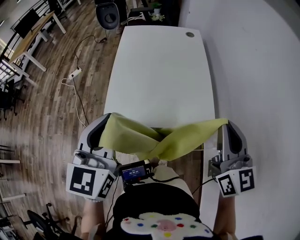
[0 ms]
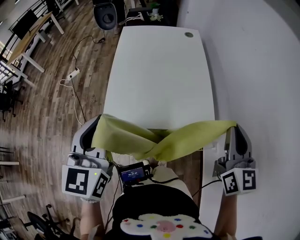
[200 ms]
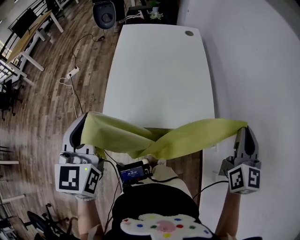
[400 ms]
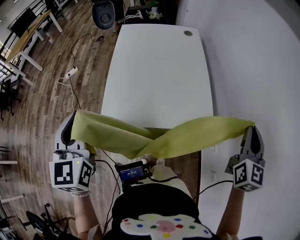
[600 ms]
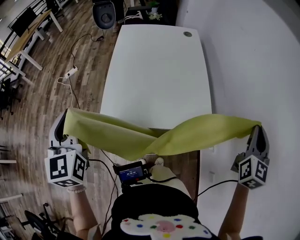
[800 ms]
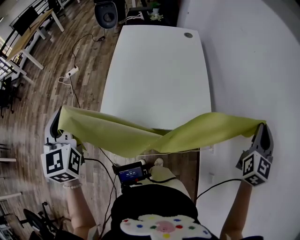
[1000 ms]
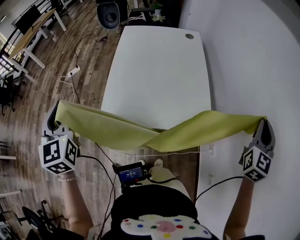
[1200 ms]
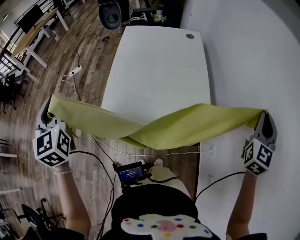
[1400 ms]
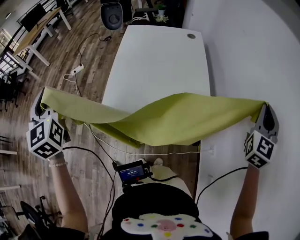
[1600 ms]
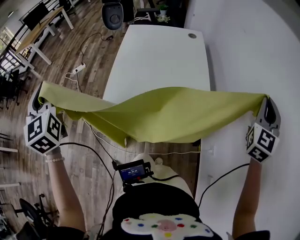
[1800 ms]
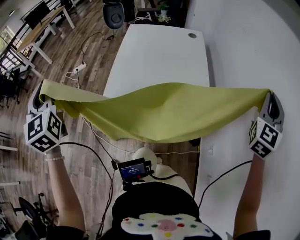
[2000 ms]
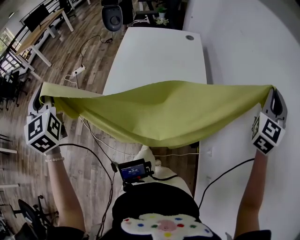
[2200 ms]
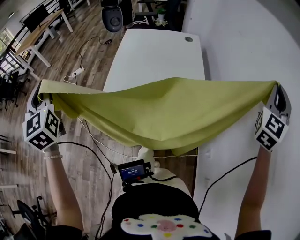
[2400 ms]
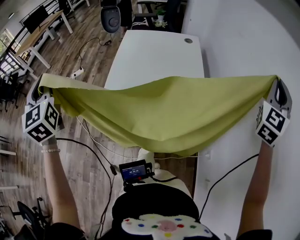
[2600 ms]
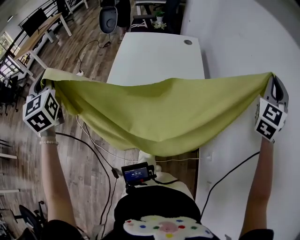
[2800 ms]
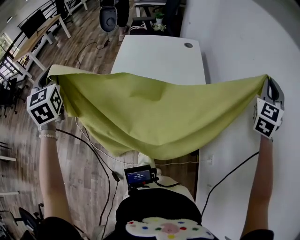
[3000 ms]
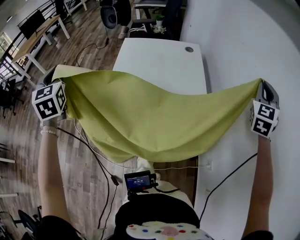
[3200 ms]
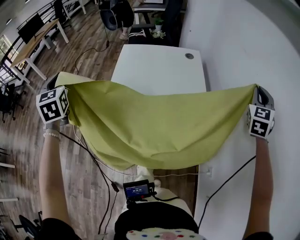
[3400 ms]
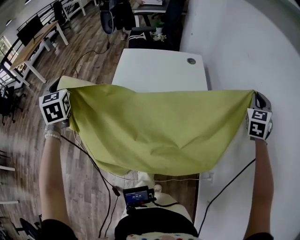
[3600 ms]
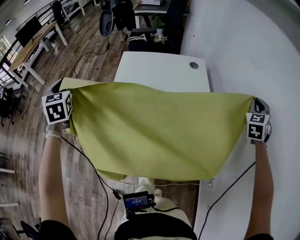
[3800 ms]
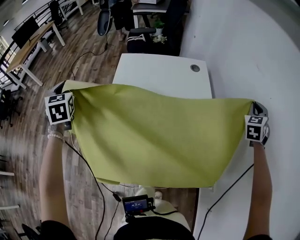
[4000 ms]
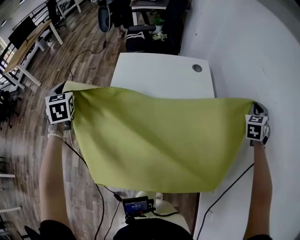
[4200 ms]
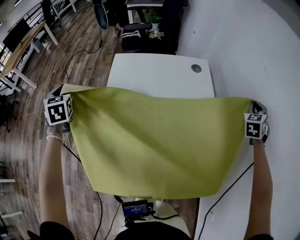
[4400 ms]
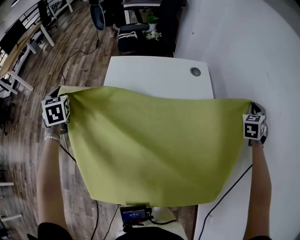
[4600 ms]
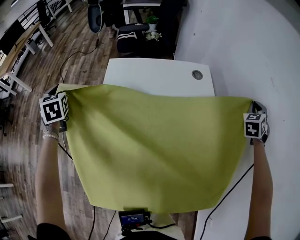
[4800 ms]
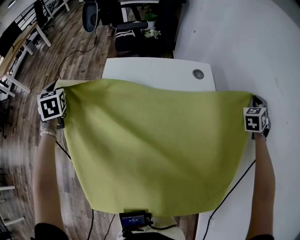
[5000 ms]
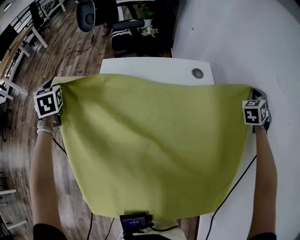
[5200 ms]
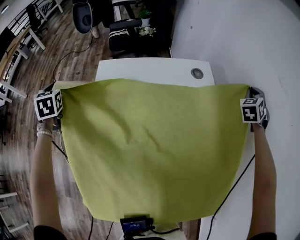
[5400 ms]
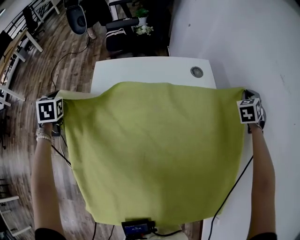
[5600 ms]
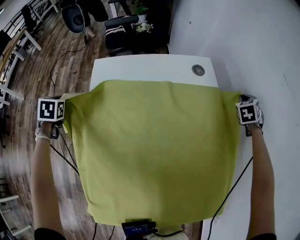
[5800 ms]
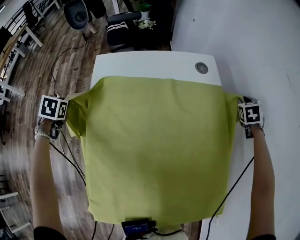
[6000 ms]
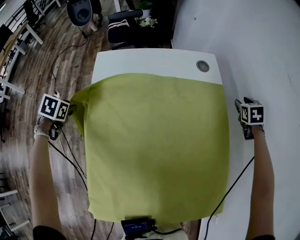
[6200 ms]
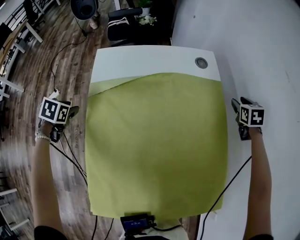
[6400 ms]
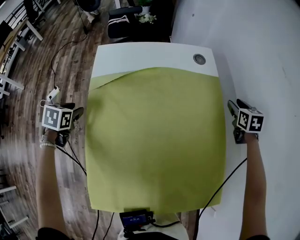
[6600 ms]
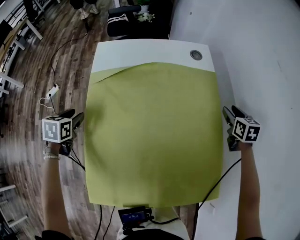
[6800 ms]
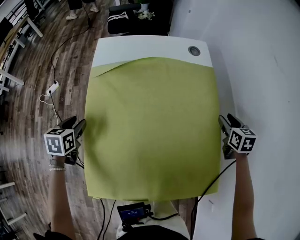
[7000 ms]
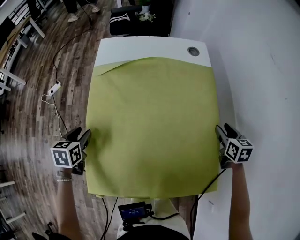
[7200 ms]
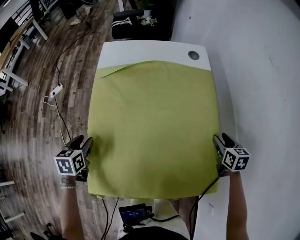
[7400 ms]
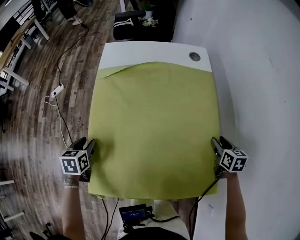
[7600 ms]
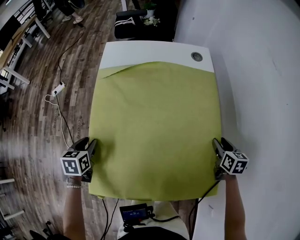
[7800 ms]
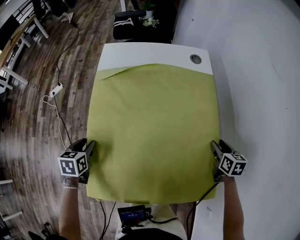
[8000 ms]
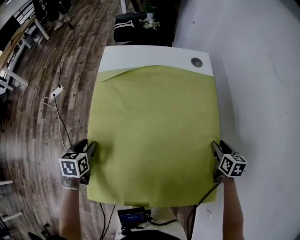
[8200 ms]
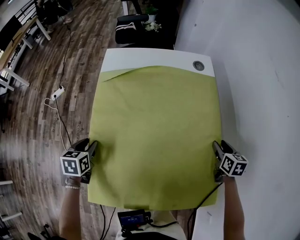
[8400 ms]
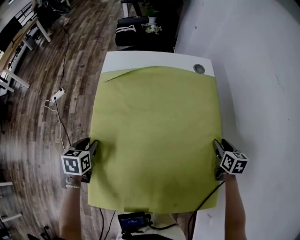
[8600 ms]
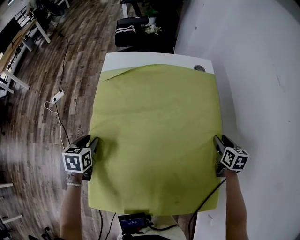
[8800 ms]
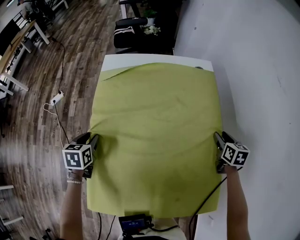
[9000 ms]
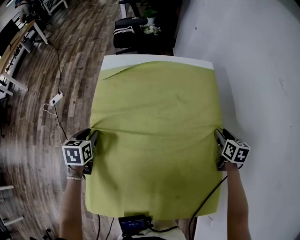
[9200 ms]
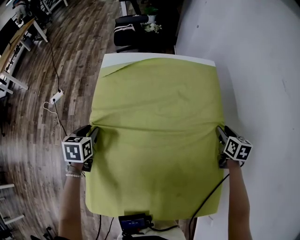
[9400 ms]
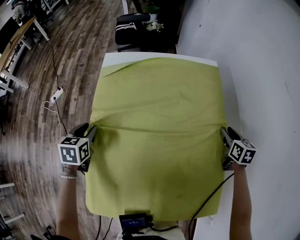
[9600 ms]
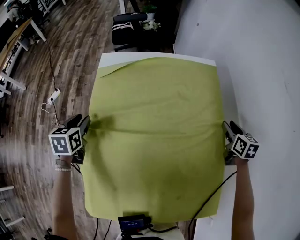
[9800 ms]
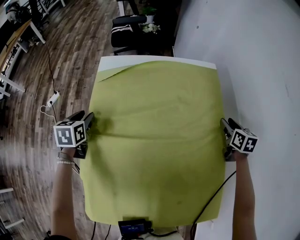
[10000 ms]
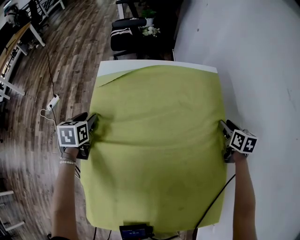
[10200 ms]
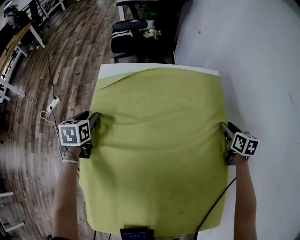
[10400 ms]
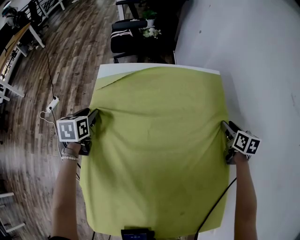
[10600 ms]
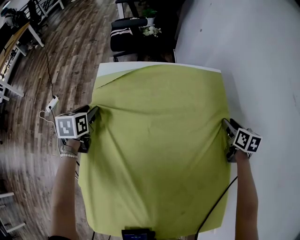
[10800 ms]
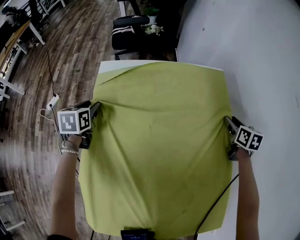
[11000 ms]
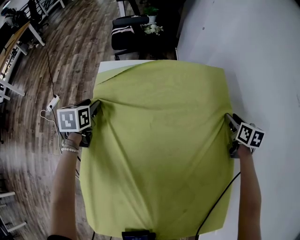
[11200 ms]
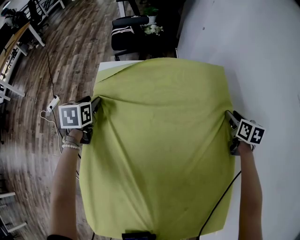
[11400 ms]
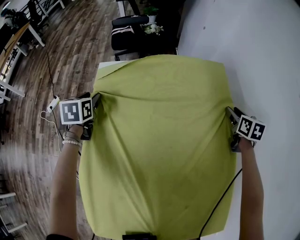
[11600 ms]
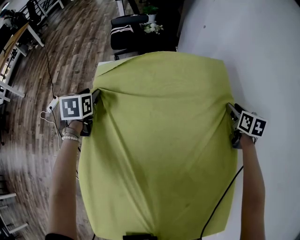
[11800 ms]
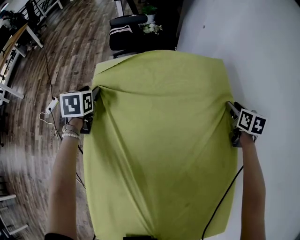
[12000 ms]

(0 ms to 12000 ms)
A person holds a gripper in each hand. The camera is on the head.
0 ms - 1600 ms: The right gripper travels to the right by roughly 20 cm, and swivels some 40 degrees, while the left gripper travels to the left by about 20 cm, and rotates approximately 40 degrees.
1600 ms - 3000 ms: The left gripper shifts about 10 cm forward. Meanwhile the right gripper travels forward and upward by roughly 10 cm.
3000 ms - 4400 ms: Both grippers travel together forward and downward, about 35 cm. The left gripper turns by roughly 20 degrees, while the right gripper swivels some 30 degrees.
4400 ms - 6000 ms: Both grippers move downward and forward, about 20 cm. The right gripper changes its angle by some 20 degrees. Meanwhile the left gripper angles its fingers downward, by approximately 40 degrees.
6000 ms - 7600 ms: The left gripper travels backward and to the right by approximately 30 cm, changes its angle by roughly 30 degrees, and opens up, while the right gripper travels backward by some 30 cm, swivels some 40 degrees, and opens its fingers.
7600 ms - 9000 ms: Both grippers move forward, some 10 cm.
9000 ms - 10400 ms: The two grippers go approximately 15 cm forward.
10400 ms - 12000 ms: Both grippers travel together forward, roughly 10 cm.

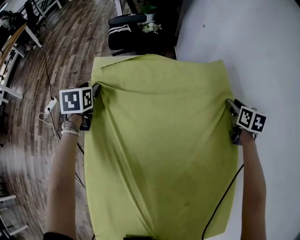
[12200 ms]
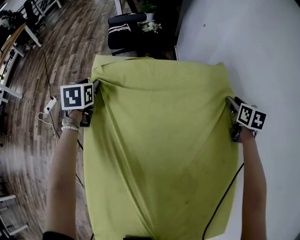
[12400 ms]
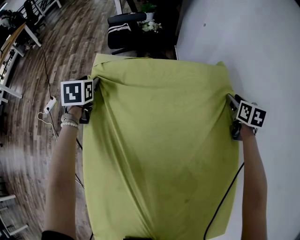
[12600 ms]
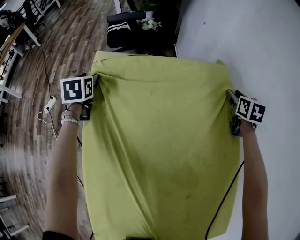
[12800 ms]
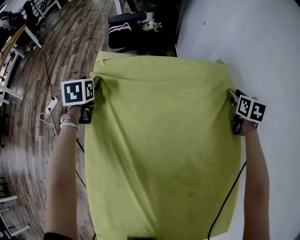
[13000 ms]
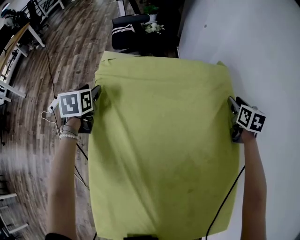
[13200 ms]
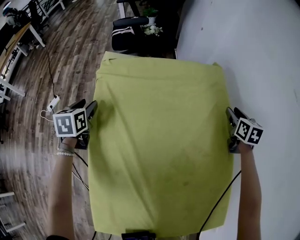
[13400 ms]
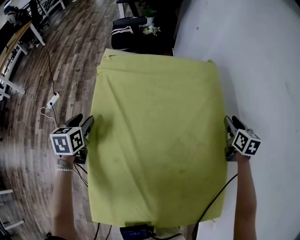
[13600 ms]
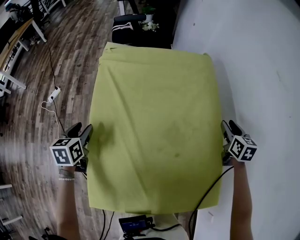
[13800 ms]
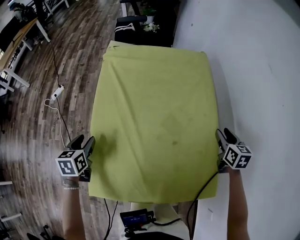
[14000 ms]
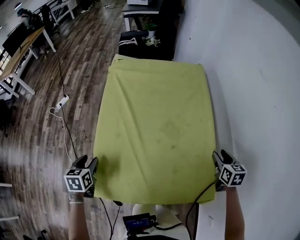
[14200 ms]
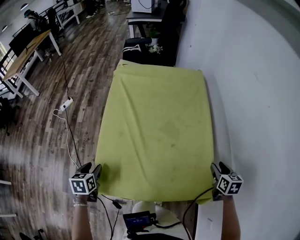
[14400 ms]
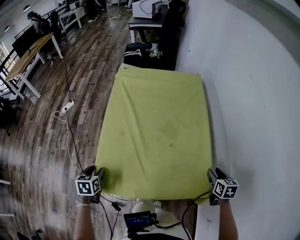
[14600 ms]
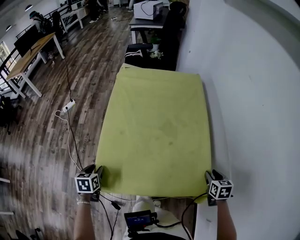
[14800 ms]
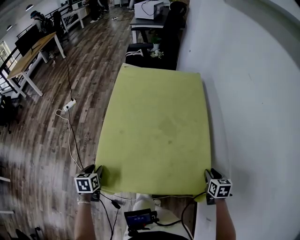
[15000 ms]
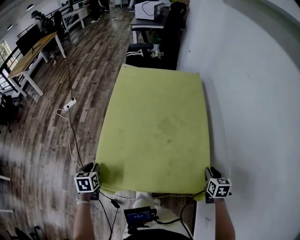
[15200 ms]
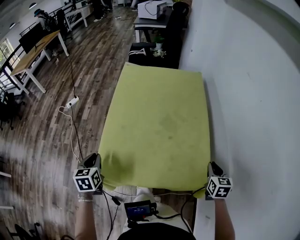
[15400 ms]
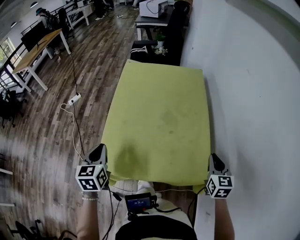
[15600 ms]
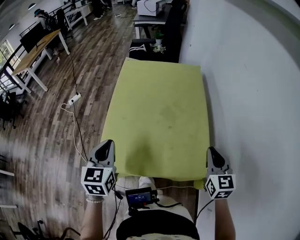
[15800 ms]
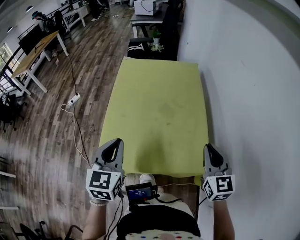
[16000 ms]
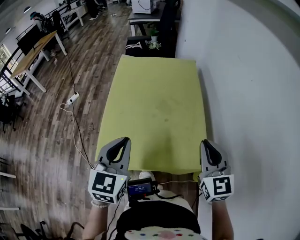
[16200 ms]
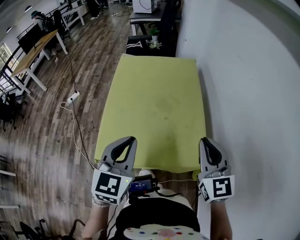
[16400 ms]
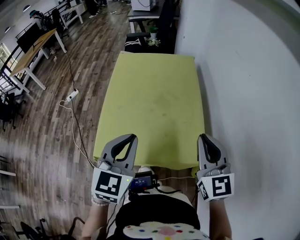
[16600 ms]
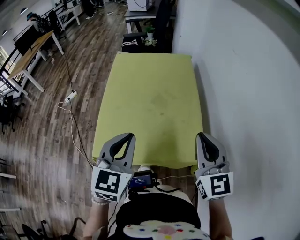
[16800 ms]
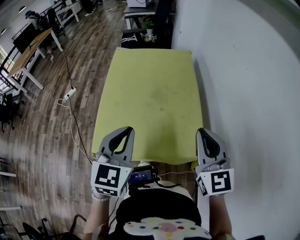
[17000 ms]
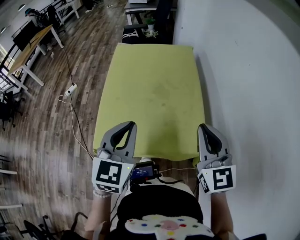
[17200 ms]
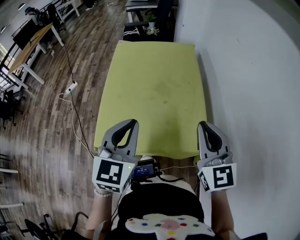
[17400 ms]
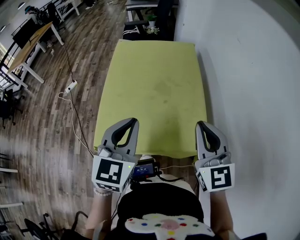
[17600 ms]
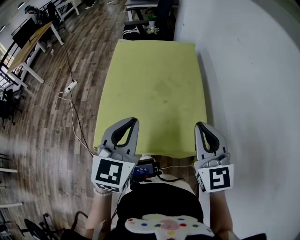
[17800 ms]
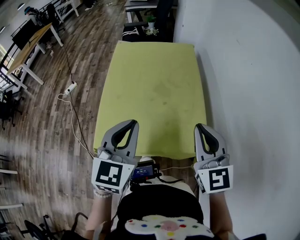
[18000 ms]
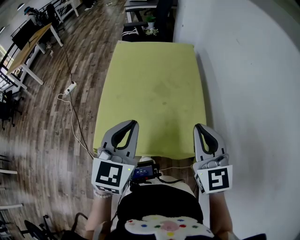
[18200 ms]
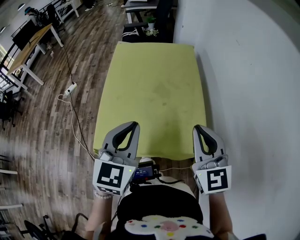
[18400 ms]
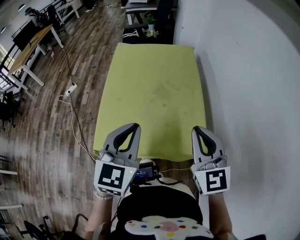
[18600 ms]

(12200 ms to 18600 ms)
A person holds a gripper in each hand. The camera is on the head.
12200 ms - 13800 ms: Both grippers move backward, about 25 cm.
13800 ms - 15400 ms: The grippers both shift backward by some 25 cm. The right gripper closes. Meanwhile the left gripper closes up.
15400 ms - 17000 ms: The right gripper shifts some 25 cm upward and to the left, and tips its fingers upward by about 30 degrees, while the left gripper travels to the right and upward by about 30 cm, and turns by approximately 40 degrees.
17000 ms - 18600 ms: The grippers stay close to where they were, moving slightly.

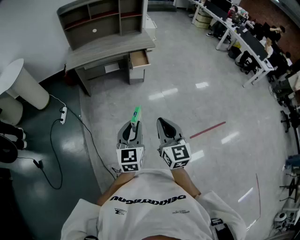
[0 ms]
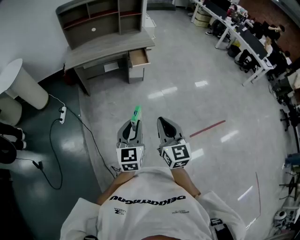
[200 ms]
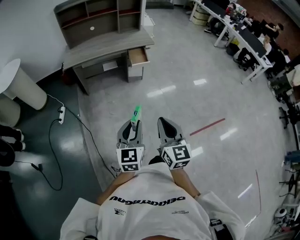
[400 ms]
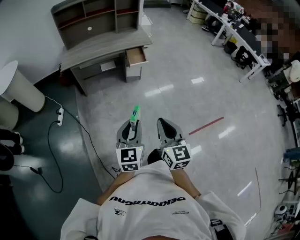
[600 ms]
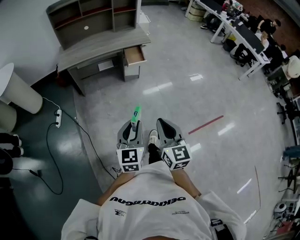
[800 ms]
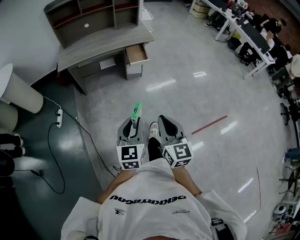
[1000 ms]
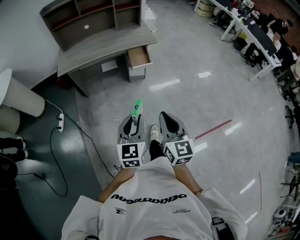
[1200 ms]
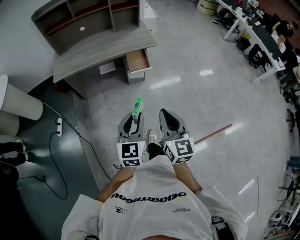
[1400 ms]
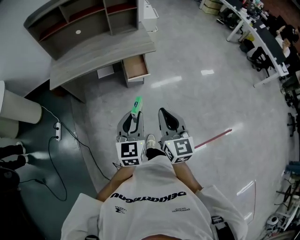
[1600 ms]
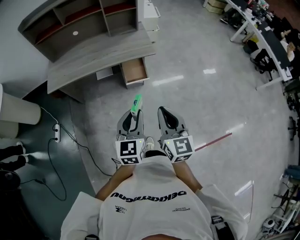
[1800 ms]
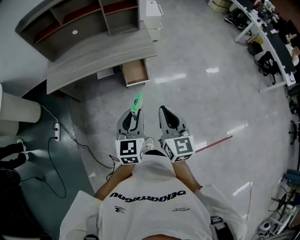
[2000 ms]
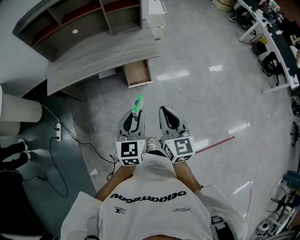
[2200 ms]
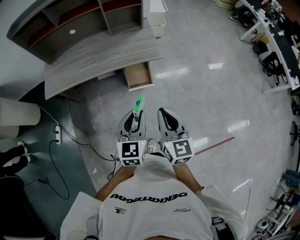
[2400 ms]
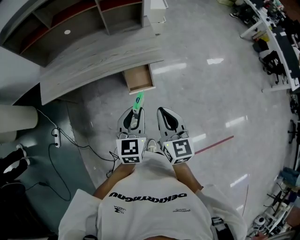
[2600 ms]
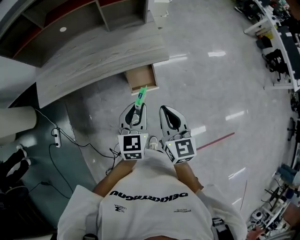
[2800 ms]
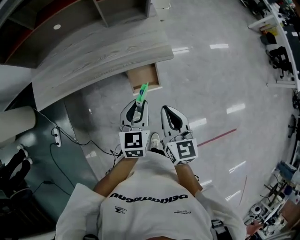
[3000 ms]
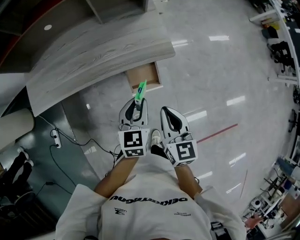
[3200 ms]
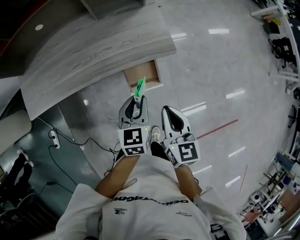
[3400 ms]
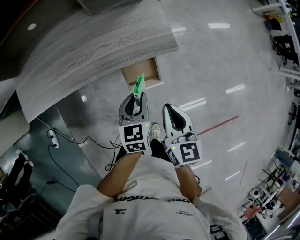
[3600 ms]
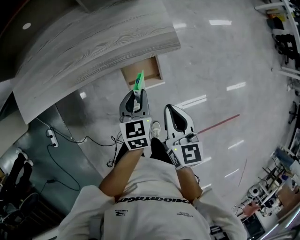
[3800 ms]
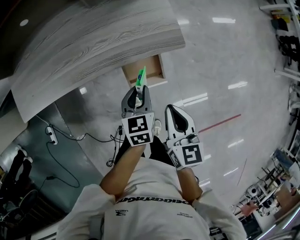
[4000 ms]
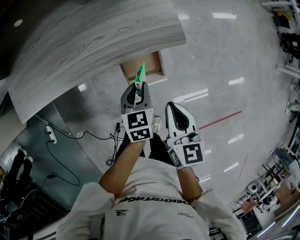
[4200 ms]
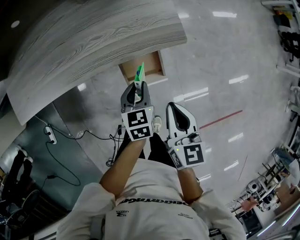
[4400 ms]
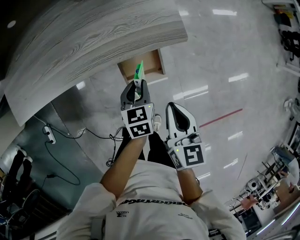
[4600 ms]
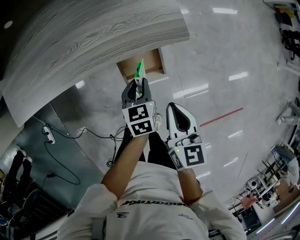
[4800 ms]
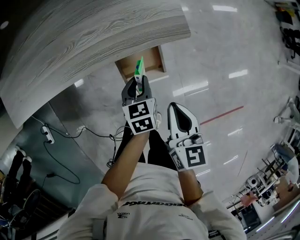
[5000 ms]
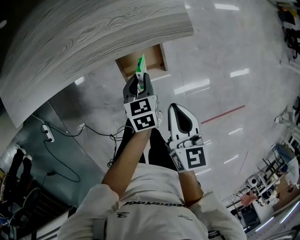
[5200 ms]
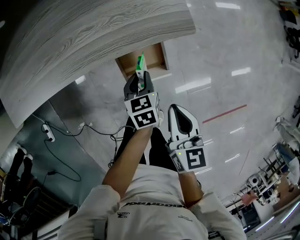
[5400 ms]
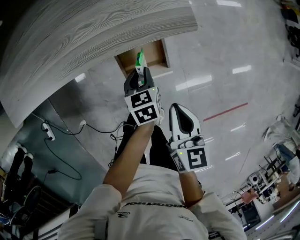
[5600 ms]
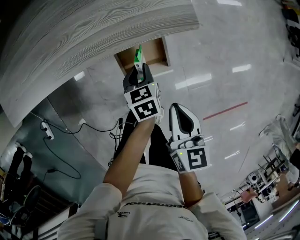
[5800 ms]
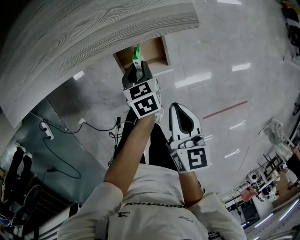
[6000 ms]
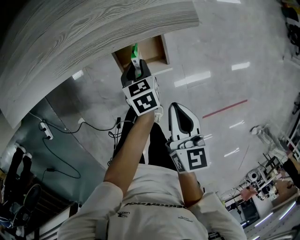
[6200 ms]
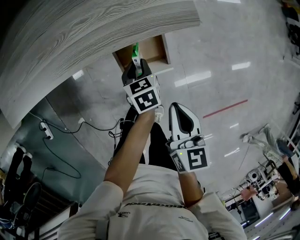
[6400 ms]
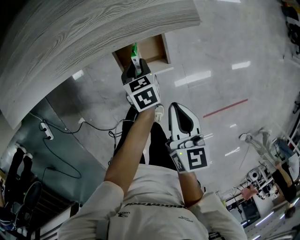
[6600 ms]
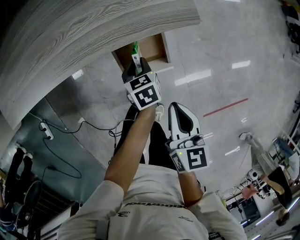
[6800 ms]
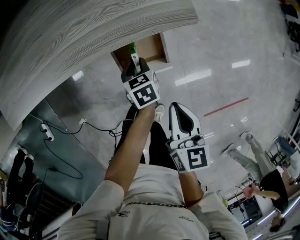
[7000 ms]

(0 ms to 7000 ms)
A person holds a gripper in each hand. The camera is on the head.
0 ms - 1400 ms: Both grippers move forward, some 30 cm.
1400 ms - 2800 ms: The two grippers travel together, forward, approximately 50 cm.
2800 ms - 4200 ms: Both grippers move downward and forward, roughly 25 cm. The left gripper turns by some 20 degrees.
4200 ms - 5600 ms: The left gripper shifts roughly 10 cm downward; the right gripper travels downward by some 5 cm.
5600 ms - 7000 ms: The left gripper shifts roughly 5 cm downward.
